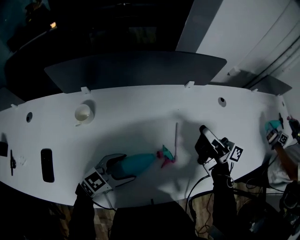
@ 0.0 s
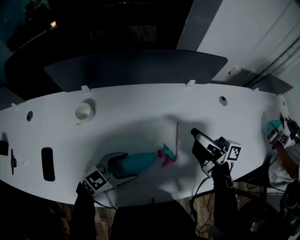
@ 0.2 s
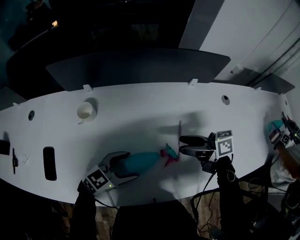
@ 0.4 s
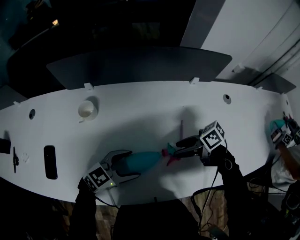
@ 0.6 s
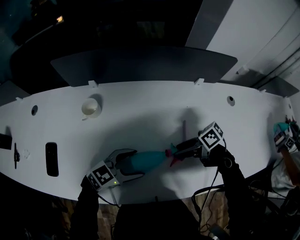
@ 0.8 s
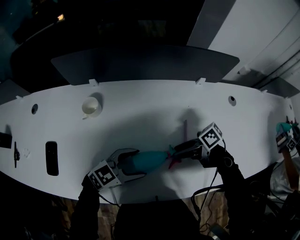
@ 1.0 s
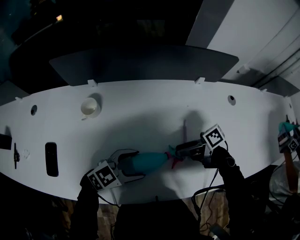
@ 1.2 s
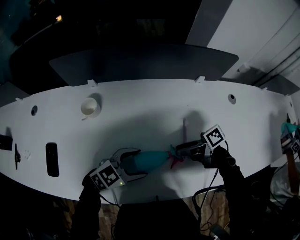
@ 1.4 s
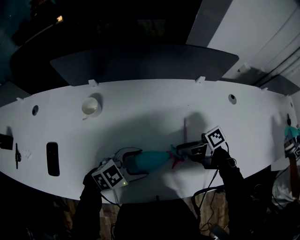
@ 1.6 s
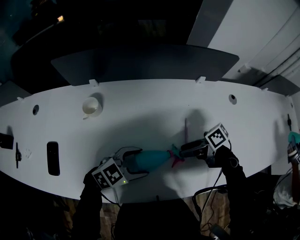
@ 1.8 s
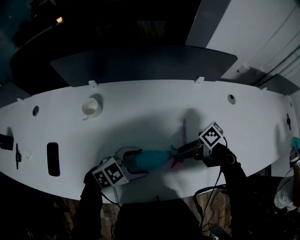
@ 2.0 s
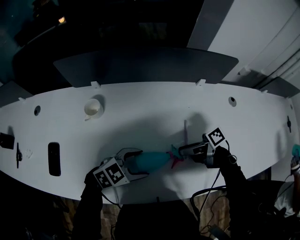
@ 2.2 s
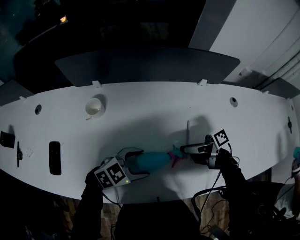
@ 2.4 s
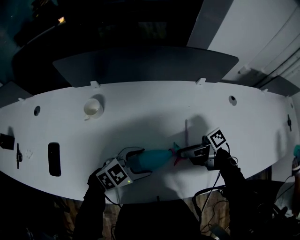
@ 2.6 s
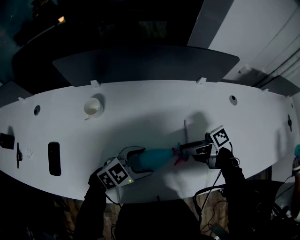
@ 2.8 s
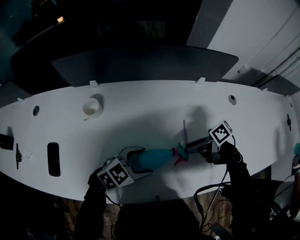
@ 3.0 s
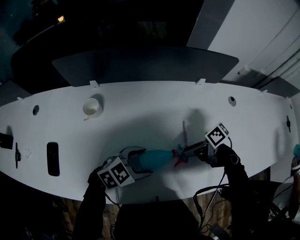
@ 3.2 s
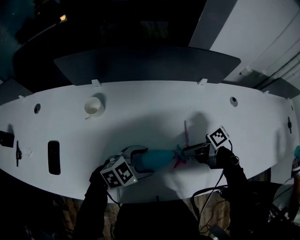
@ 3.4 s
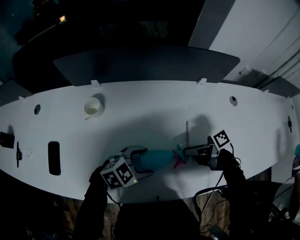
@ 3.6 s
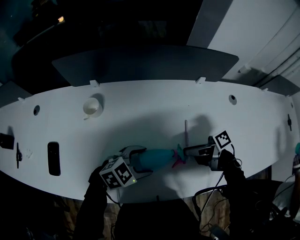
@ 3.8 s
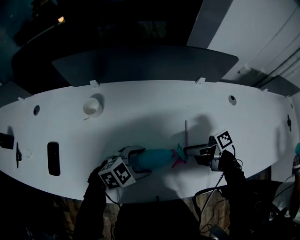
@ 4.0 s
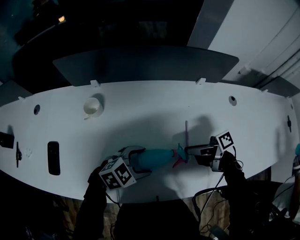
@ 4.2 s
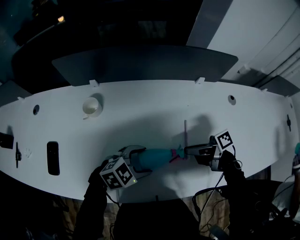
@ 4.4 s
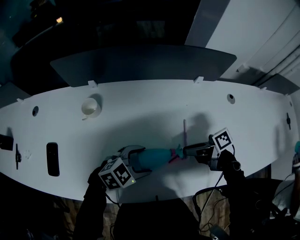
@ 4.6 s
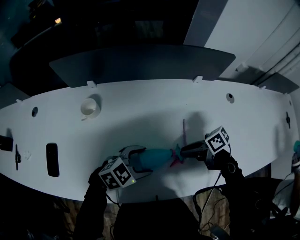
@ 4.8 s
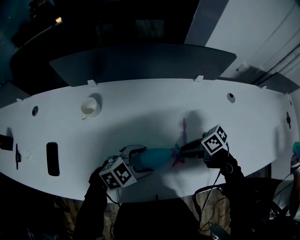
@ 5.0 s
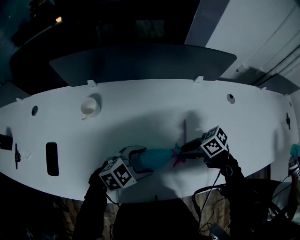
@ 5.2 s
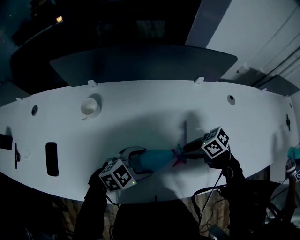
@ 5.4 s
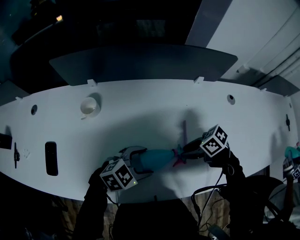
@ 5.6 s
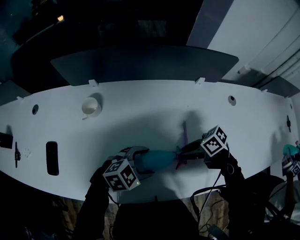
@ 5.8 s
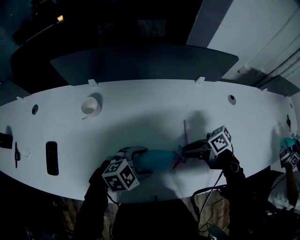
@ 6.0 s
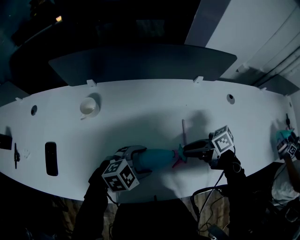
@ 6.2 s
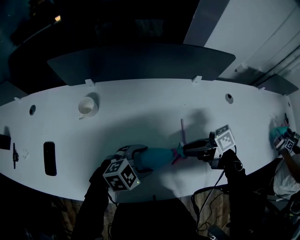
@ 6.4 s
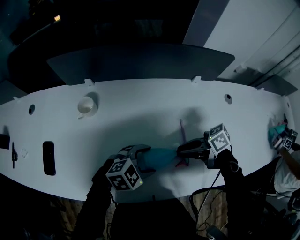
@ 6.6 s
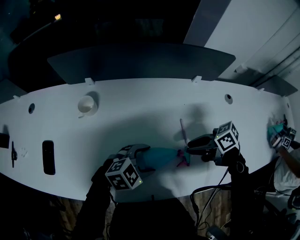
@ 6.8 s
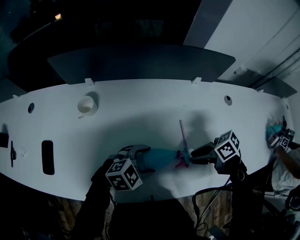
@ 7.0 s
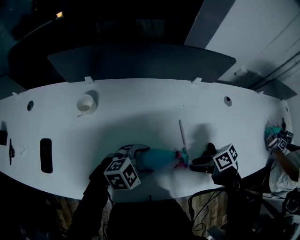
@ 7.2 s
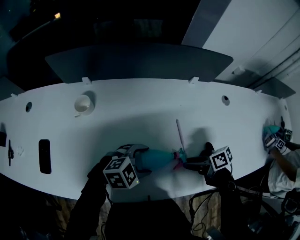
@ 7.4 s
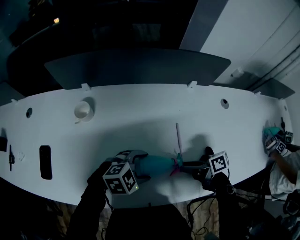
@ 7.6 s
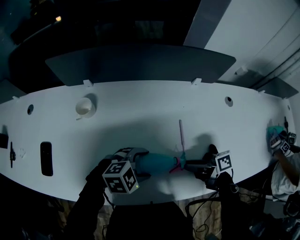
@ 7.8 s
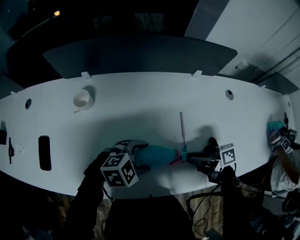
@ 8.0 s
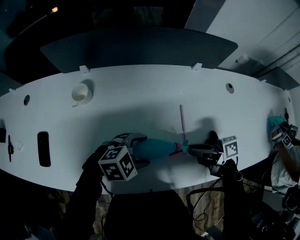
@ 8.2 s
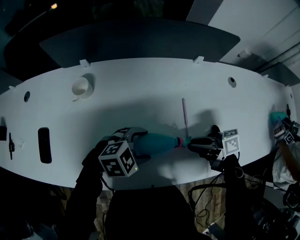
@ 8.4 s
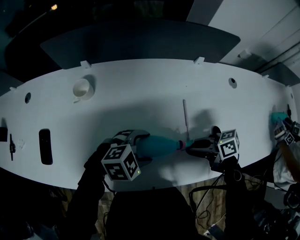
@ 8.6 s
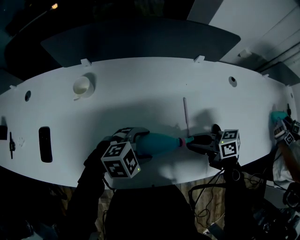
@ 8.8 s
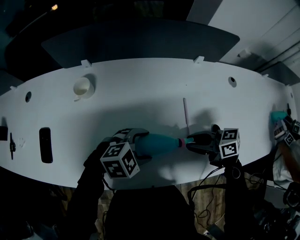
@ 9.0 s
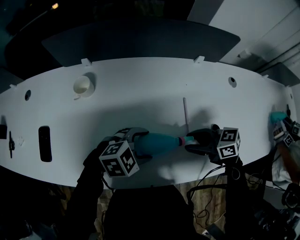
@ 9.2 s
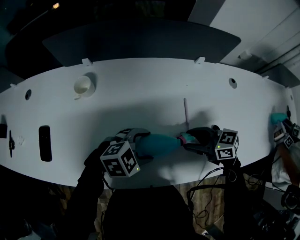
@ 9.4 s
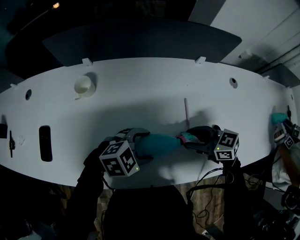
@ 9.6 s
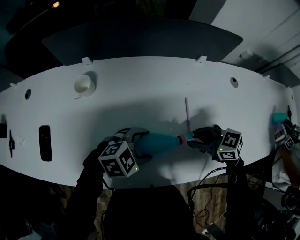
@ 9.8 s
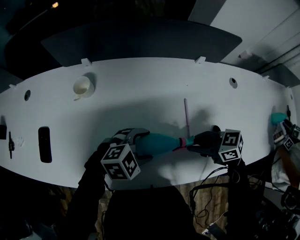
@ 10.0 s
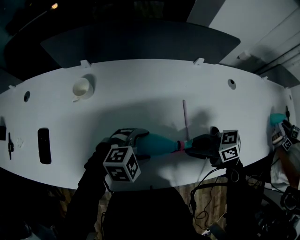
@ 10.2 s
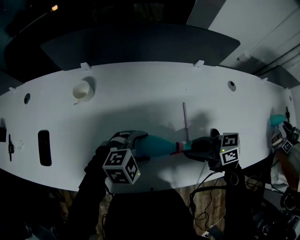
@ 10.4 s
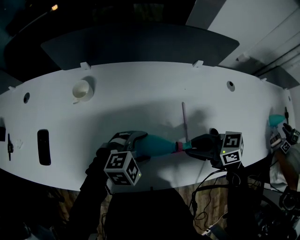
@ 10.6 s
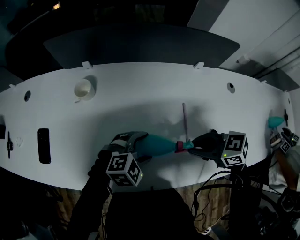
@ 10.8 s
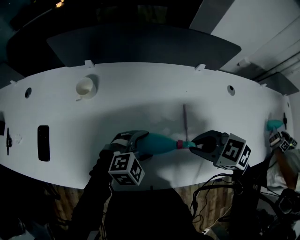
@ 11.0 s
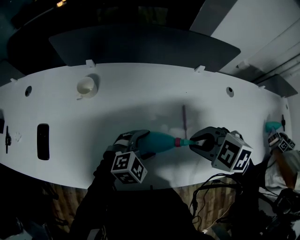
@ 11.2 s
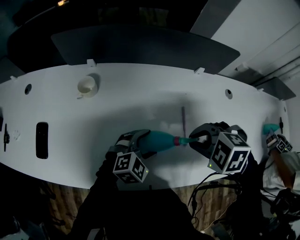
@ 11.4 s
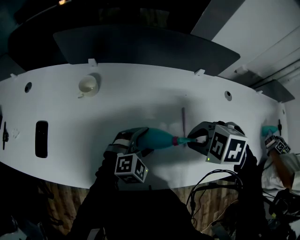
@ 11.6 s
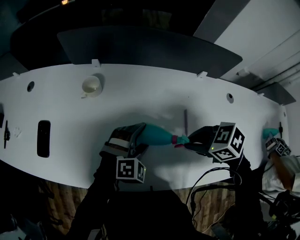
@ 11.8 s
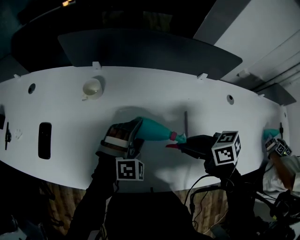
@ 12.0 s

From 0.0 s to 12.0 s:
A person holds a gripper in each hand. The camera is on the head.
From 0.0 s to 1.6 s: The right gripper heads downward, covering approximately 15 cm, tilts its fingers some 30 degrees downward, and opens up.
From 1.6 s to 3.0 s: The grippers move only a little.
From 4.4 s to 6.0 s: The right gripper turns by approximately 20 degrees.
From 6.0 s to 7.6 s: The right gripper rotates approximately 20 degrees.
From 7.6 s to 9.0 s: The right gripper swivels roughly 30 degrees.
From 10.4 s to 12.0 s: The left gripper changes place by approximately 10 cm, and swivels approximately 50 degrees. The right gripper moves approximately 5 cm.

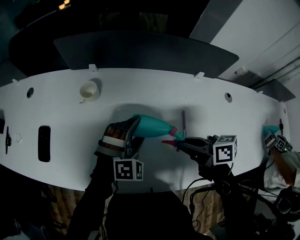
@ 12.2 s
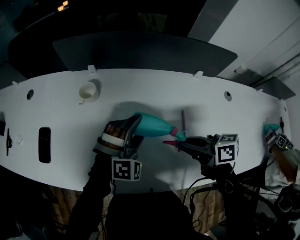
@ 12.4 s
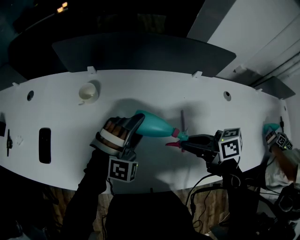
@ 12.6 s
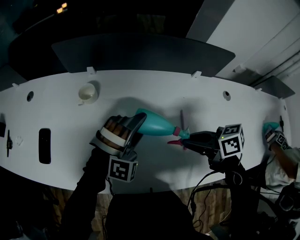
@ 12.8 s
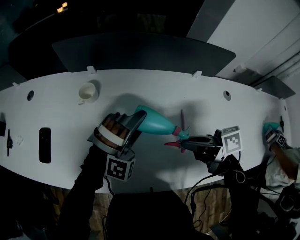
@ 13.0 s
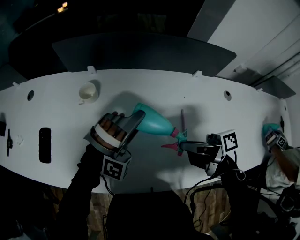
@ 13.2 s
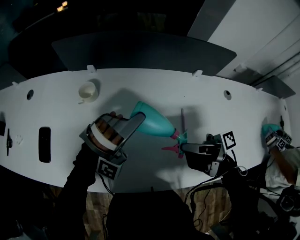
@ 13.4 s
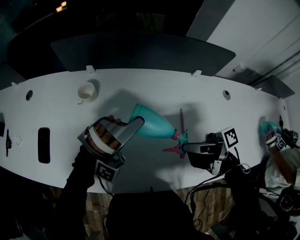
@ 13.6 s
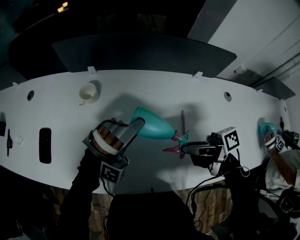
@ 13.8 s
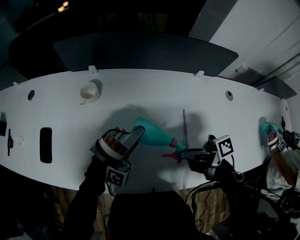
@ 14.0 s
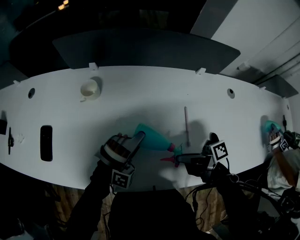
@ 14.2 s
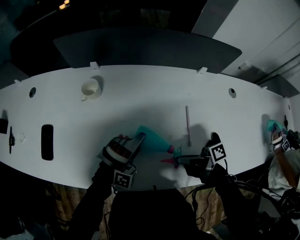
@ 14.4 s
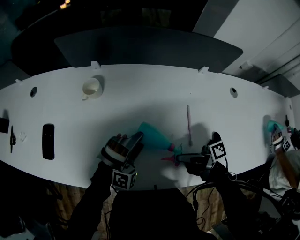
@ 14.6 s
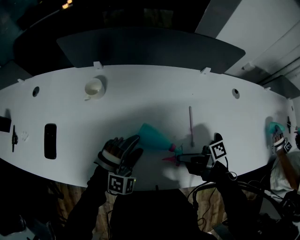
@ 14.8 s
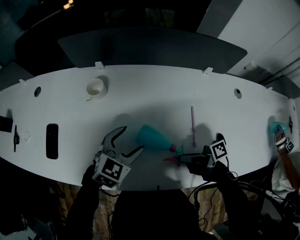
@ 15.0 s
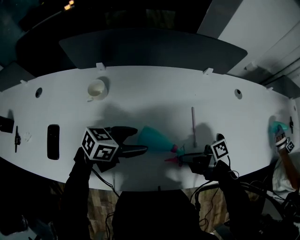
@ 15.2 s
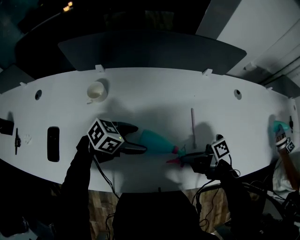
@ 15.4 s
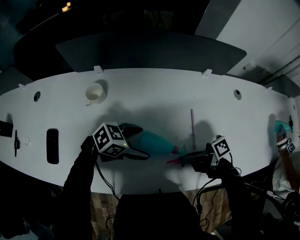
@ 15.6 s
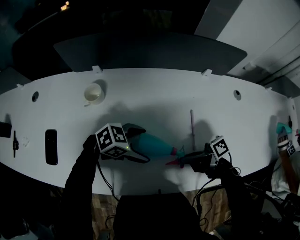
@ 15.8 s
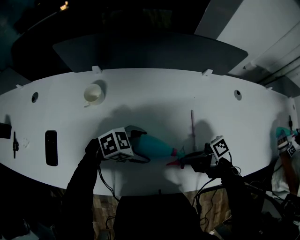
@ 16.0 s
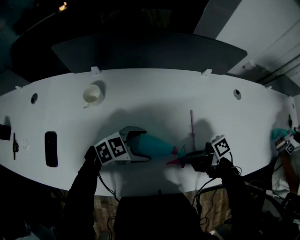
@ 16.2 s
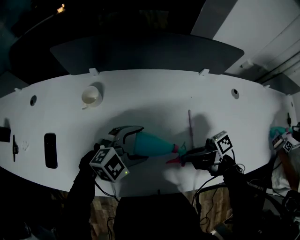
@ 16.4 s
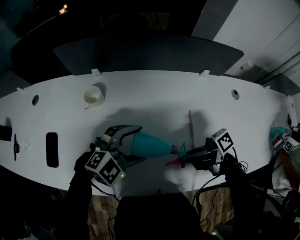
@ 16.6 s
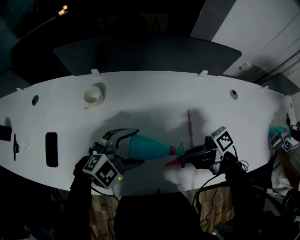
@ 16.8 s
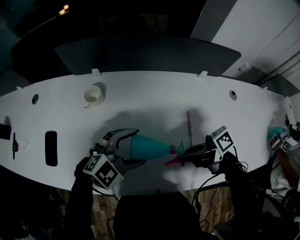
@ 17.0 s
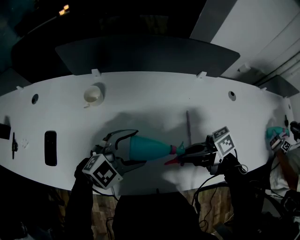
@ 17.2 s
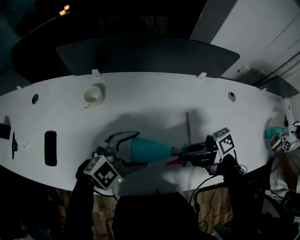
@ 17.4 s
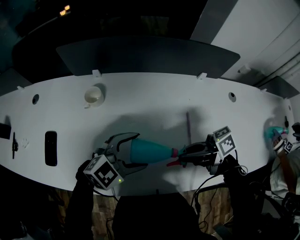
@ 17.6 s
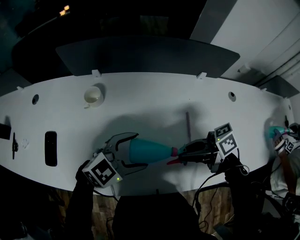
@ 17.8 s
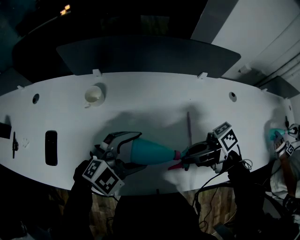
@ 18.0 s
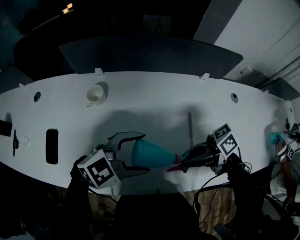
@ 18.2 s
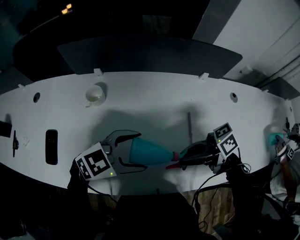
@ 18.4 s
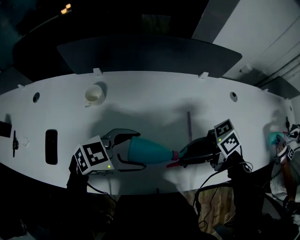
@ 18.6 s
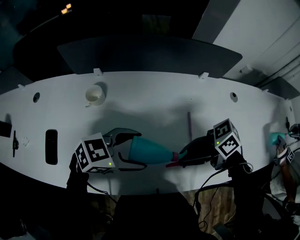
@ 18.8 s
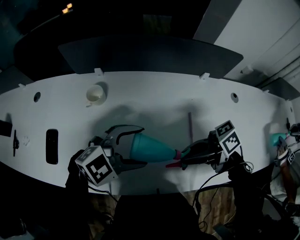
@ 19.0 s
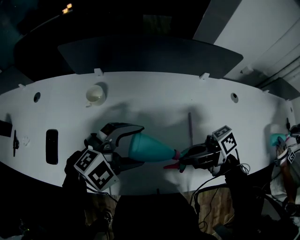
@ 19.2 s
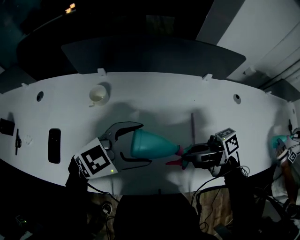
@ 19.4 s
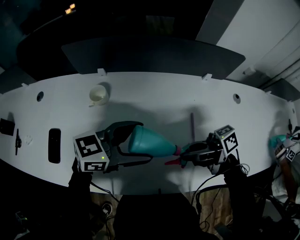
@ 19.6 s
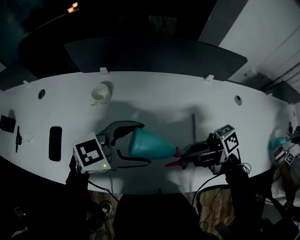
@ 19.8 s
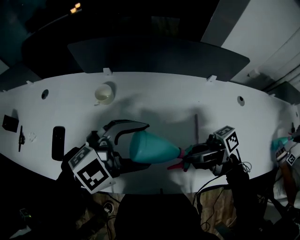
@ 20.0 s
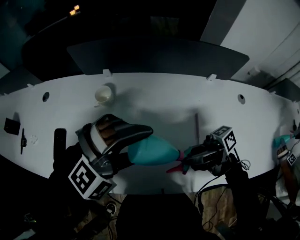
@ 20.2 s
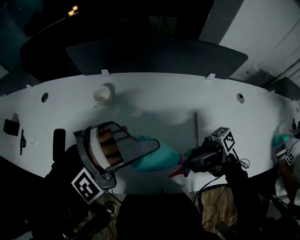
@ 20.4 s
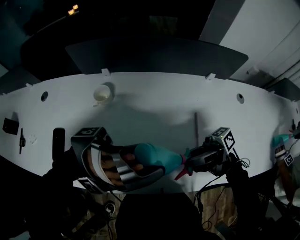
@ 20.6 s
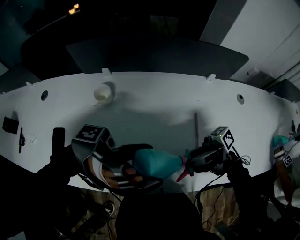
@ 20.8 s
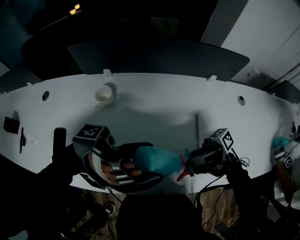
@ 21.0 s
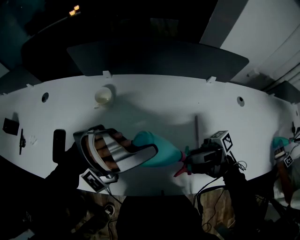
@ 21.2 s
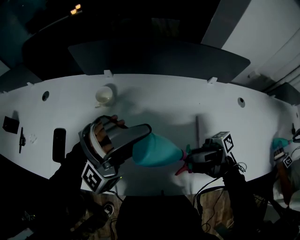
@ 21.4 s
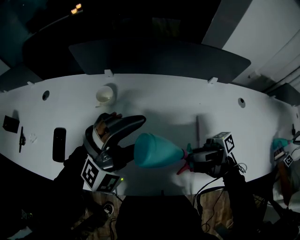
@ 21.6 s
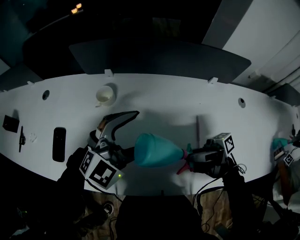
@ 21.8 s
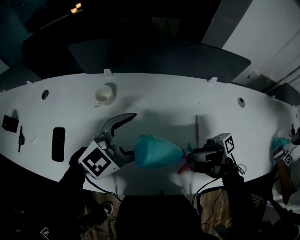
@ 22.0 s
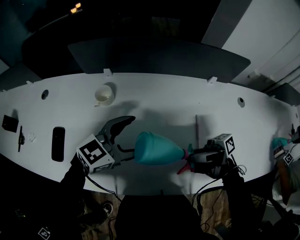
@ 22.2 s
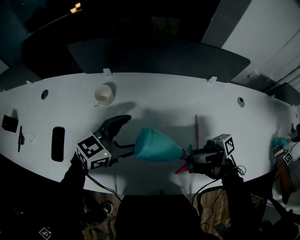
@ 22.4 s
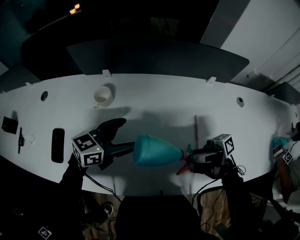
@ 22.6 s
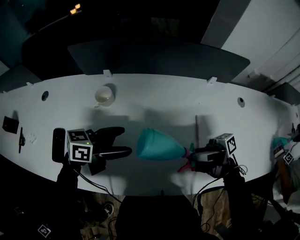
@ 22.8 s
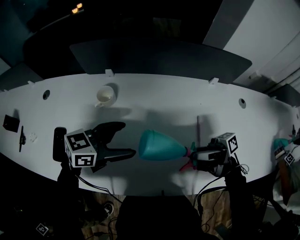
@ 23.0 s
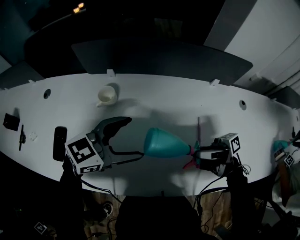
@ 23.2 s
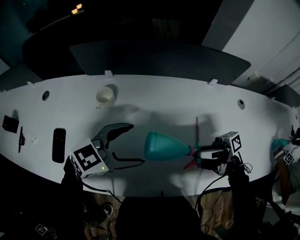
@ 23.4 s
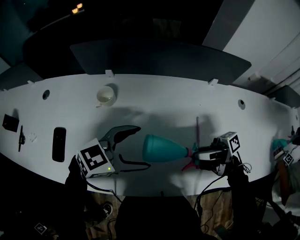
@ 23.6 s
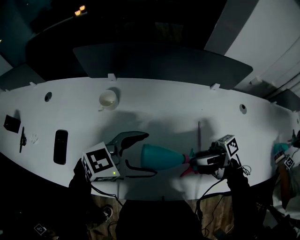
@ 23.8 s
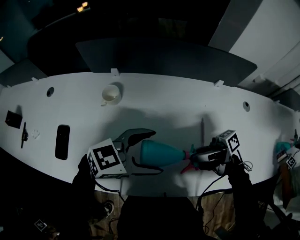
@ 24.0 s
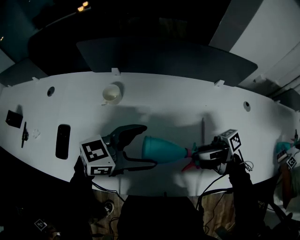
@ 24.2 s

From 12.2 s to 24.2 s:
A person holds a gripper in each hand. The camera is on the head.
From 12.2 s to 13.8 s: The left gripper goes approximately 5 cm upward, and rotates approximately 40 degrees, while the right gripper swivels some 30 degrees.
From 13.8 s to 15.2 s: Both grippers travel together downward, about 10 cm. The left gripper rolls counterclockwise, seen from behind, by roughly 110 degrees.
From 15.2 s to 16.6 s: The left gripper rolls clockwise, seen from behind, by about 60 degrees, while the right gripper travels upward by some 5 cm.
From 16.6 s to 18.2 s: The left gripper shifts by about 5 cm.
From 19.8 s to 21.2 s: The left gripper rotates around the line of its fingers by approximately 90 degrees, clockwise from behind, while the right gripper rotates some 20 degrees.
From 21.2 s to 22.6 s: The left gripper moves downward, some 10 cm, and twists roughly 110 degrees counterclockwise, seen from behind.
From 22.6 s to 24.2 s: The left gripper moves approximately 10 cm.
